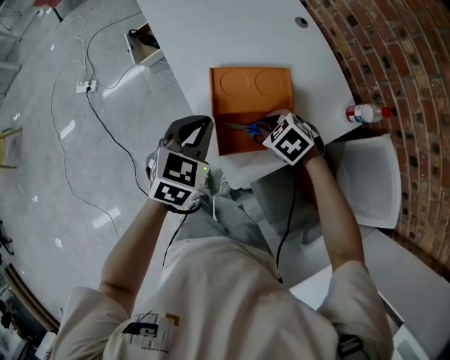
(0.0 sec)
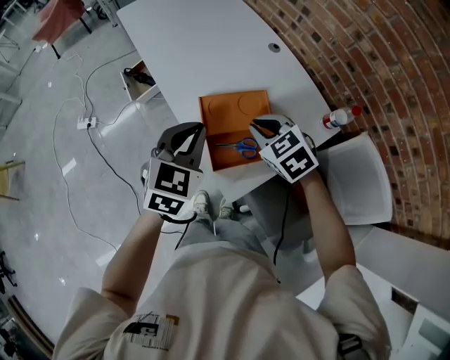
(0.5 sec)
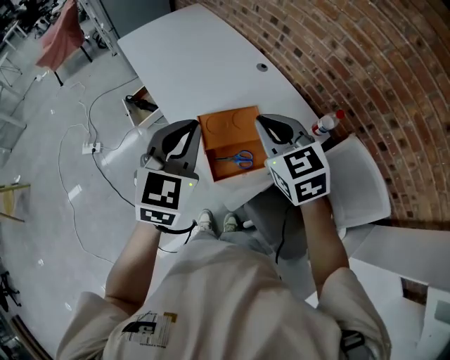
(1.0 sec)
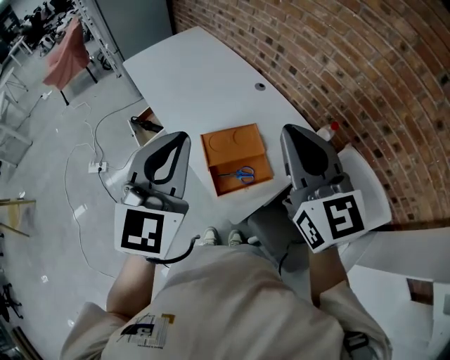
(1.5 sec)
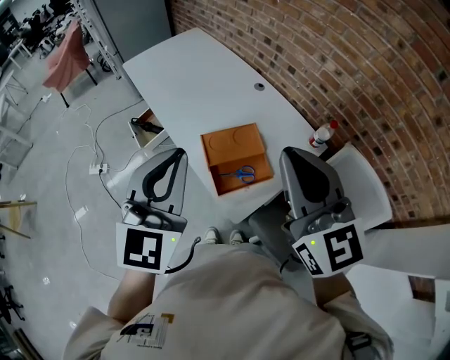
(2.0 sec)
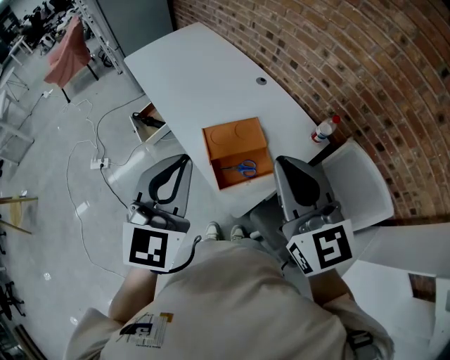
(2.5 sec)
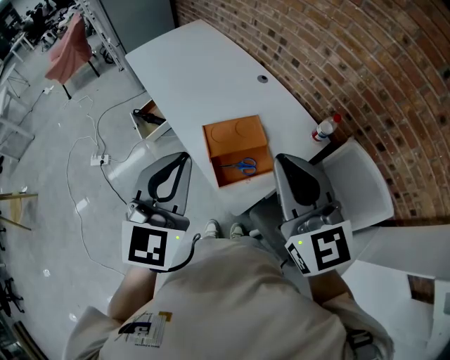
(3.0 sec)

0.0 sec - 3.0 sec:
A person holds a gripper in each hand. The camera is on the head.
0.0 sec - 1.5 sec: The two grippers go some 40 cm upward. The left gripper tips its fingers upward by roughly 30 degrees. Meanwhile the right gripper points its fingers about 70 degrees further upward.
1.5 sec - 3.0 sec: The left gripper changes place by about 5 cm. Meanwhile the right gripper heads backward, covering approximately 5 cm.

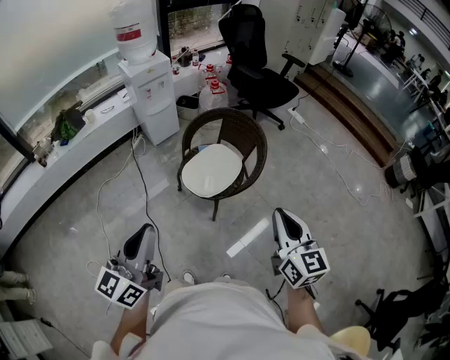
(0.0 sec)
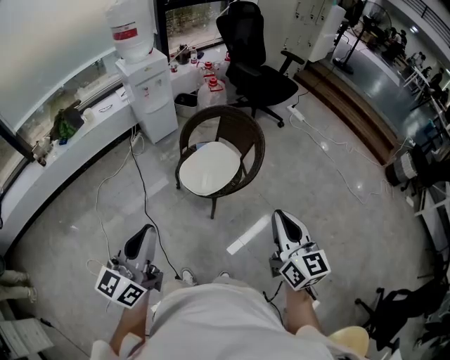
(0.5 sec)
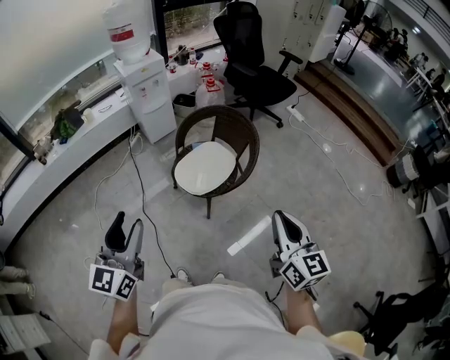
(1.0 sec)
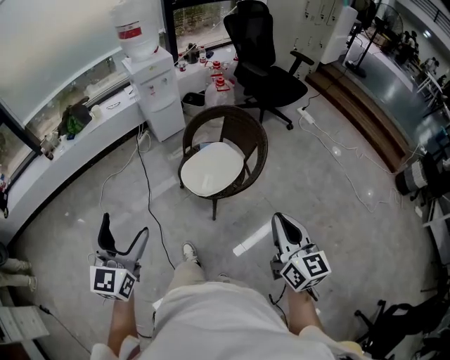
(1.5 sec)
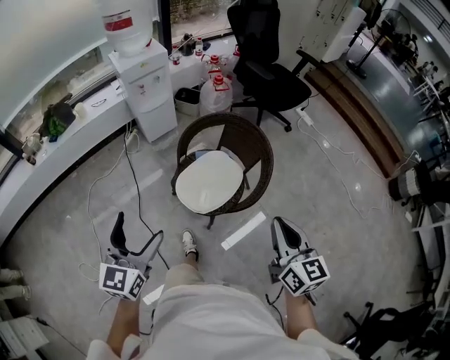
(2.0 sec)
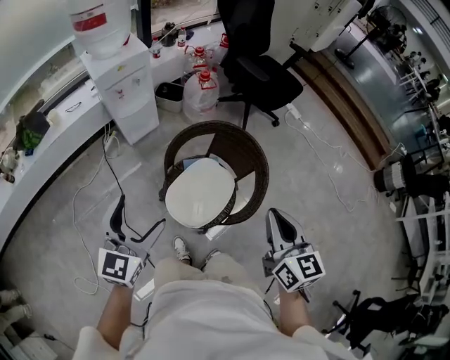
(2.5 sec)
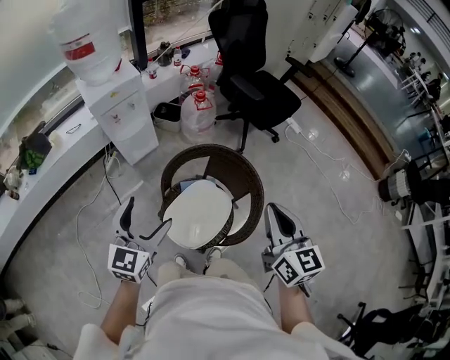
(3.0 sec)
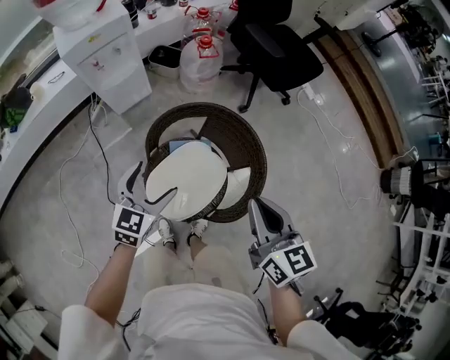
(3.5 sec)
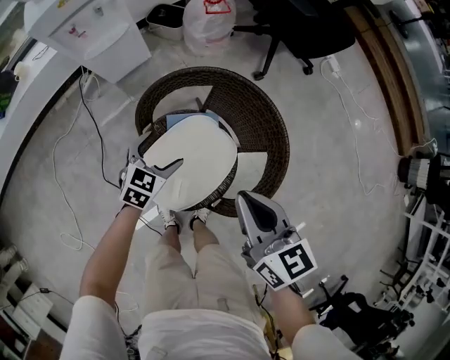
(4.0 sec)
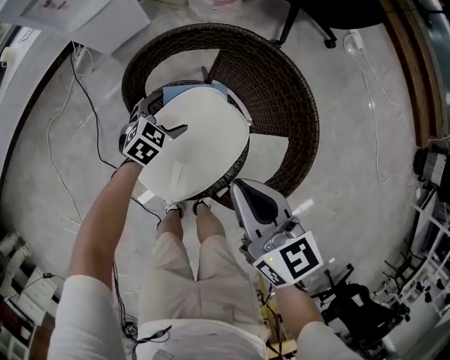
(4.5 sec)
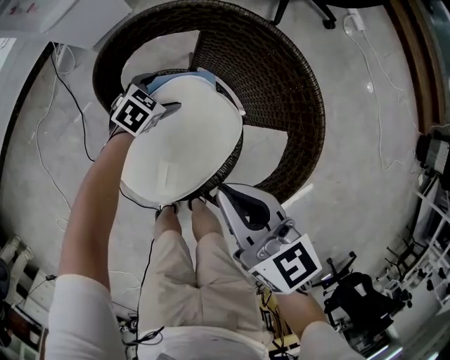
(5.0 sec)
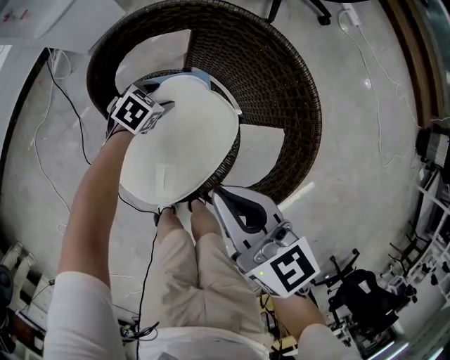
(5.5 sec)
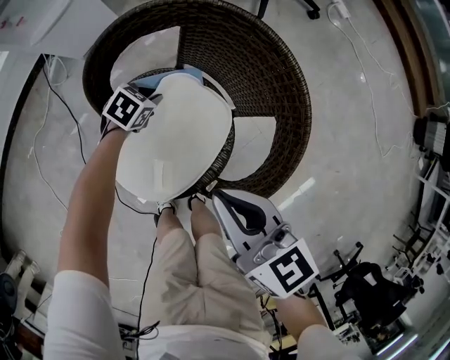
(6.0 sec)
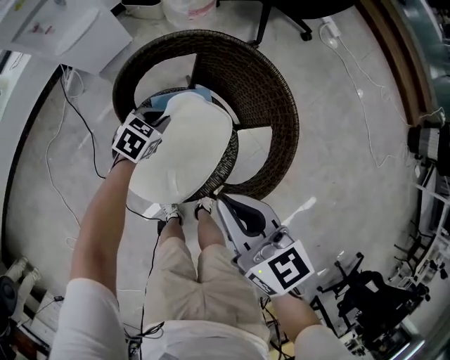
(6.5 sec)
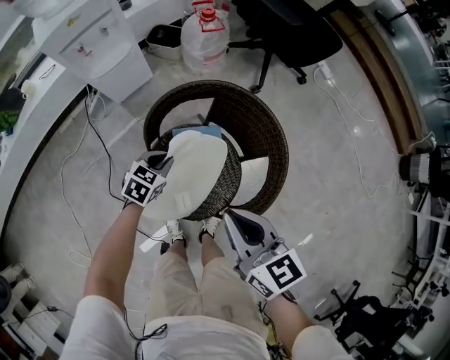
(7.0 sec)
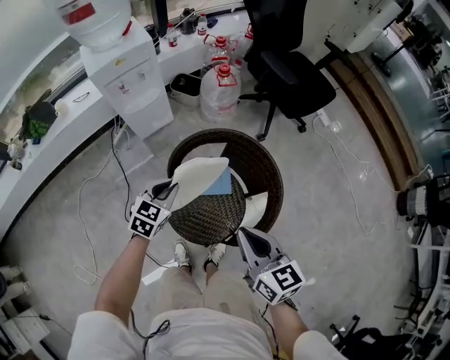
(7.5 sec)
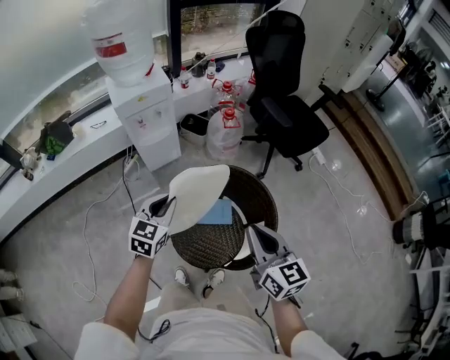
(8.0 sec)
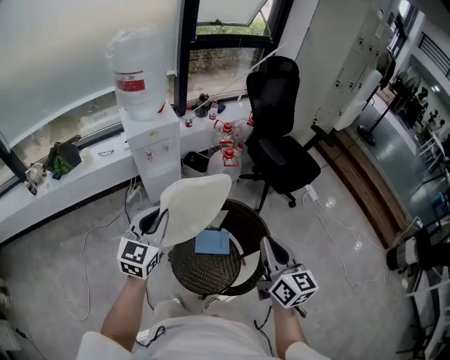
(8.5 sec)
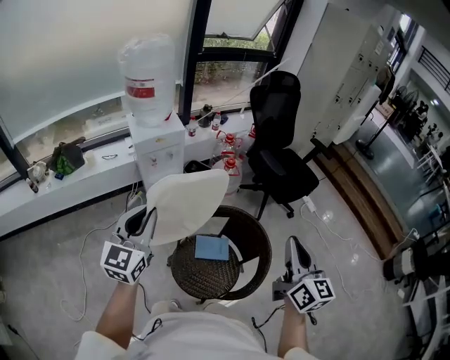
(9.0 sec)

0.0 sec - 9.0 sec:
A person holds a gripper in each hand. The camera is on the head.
0.0 sec - 2.0 sec: The left gripper travels forward and downward by some 20 cm, rotates roughly 30 degrees, and opens; the right gripper travels forward by about 15 cm.
2.0 sec - 4.5 sec: The right gripper shifts approximately 40 cm forward and downward, and rotates approximately 30 degrees, while the left gripper moves downward and forward, approximately 70 cm, and points its fingers some 40 degrees further downward.
4.5 sec - 7.0 sec: The left gripper travels upward by roughly 15 cm, and closes its fingers. The right gripper travels upward and backward by about 15 cm.
7.0 sec - 9.0 sec: The left gripper goes about 50 cm upward, and points its fingers some 50 degrees further upward. Meanwhile the right gripper shifts approximately 30 cm upward, and changes its angle by roughly 30 degrees.

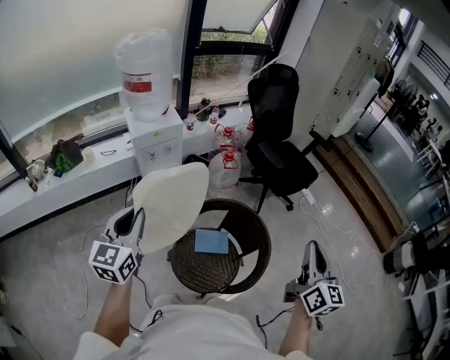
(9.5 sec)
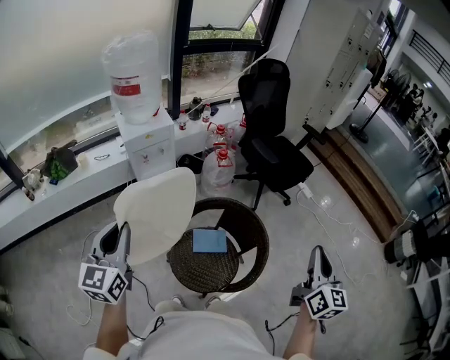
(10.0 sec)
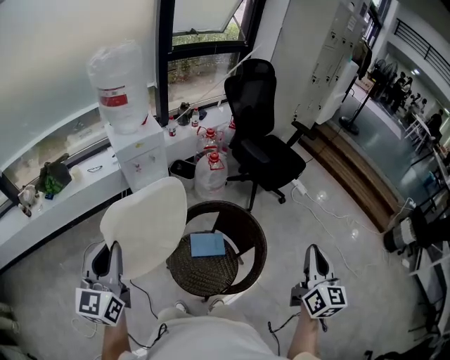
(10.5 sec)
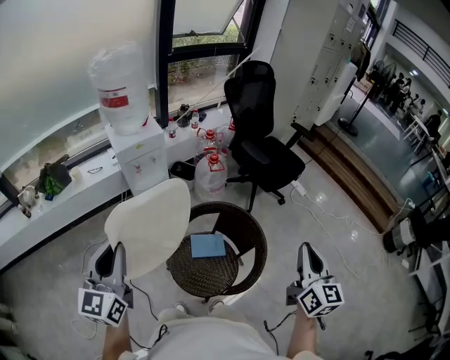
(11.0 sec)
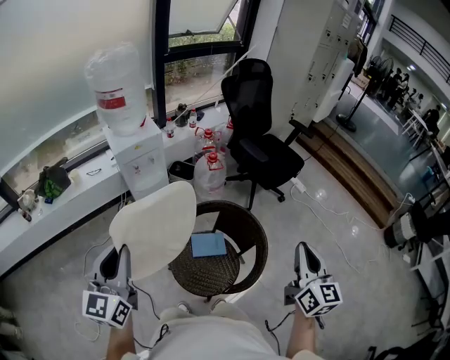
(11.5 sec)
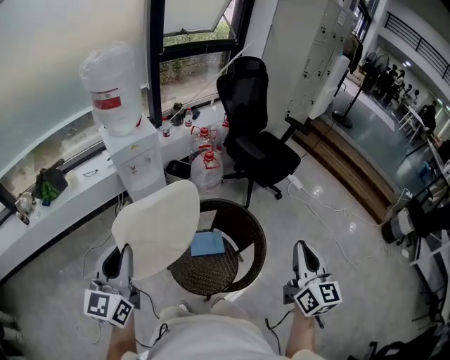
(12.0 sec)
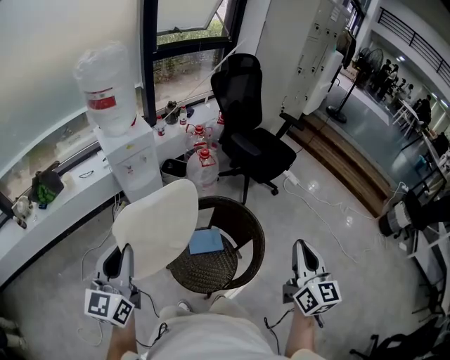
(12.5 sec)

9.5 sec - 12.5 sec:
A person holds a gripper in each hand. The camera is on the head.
9.5 sec - 11.0 sec: The left gripper heads backward, covering approximately 5 cm.
11.0 sec - 12.5 sec: The grippers move only a little.

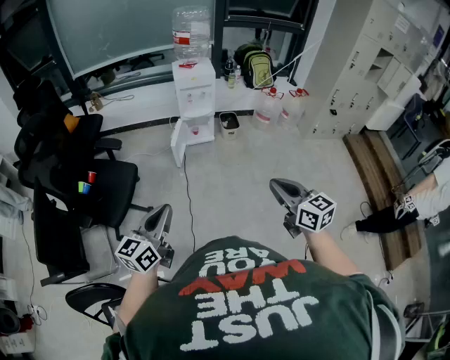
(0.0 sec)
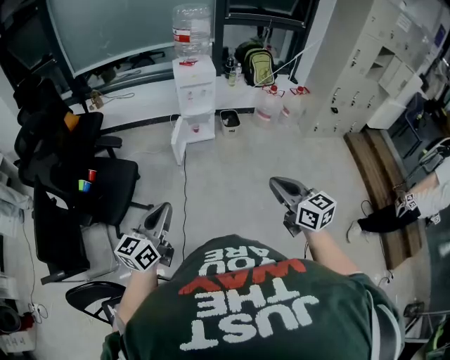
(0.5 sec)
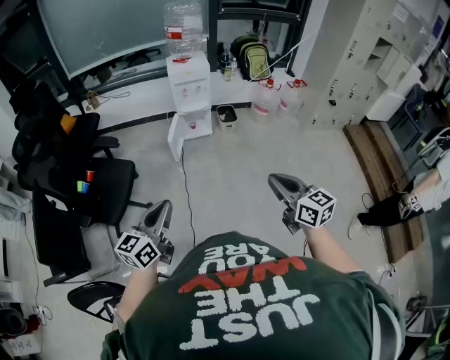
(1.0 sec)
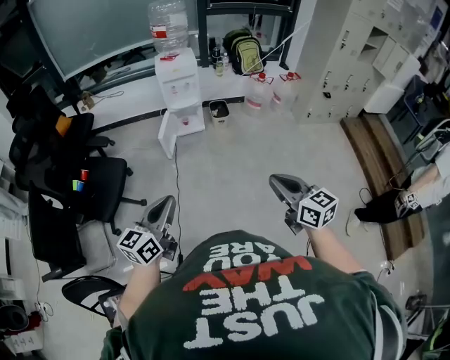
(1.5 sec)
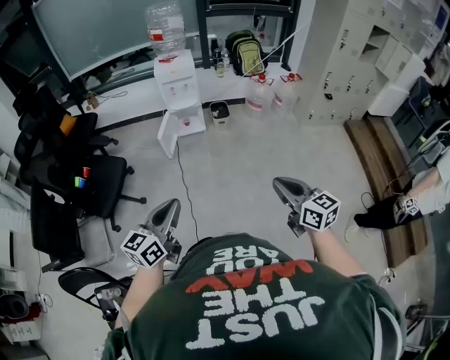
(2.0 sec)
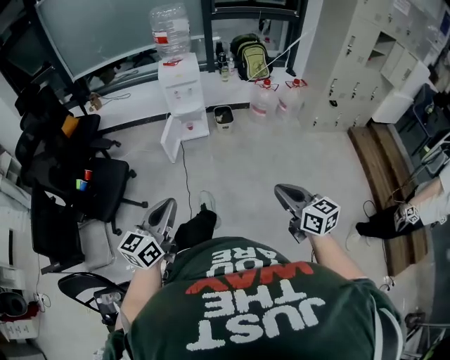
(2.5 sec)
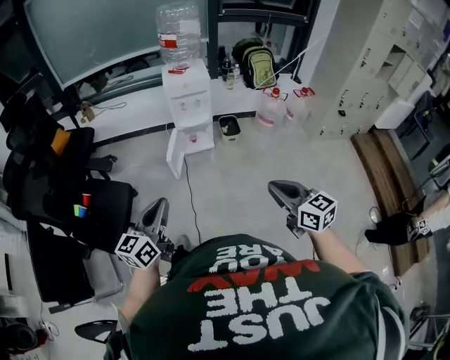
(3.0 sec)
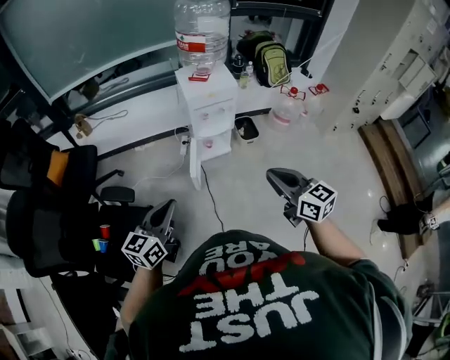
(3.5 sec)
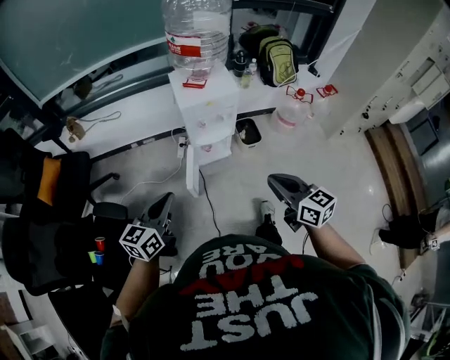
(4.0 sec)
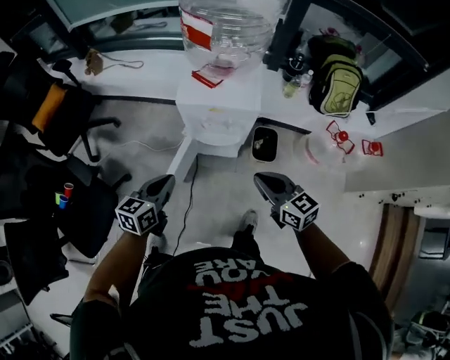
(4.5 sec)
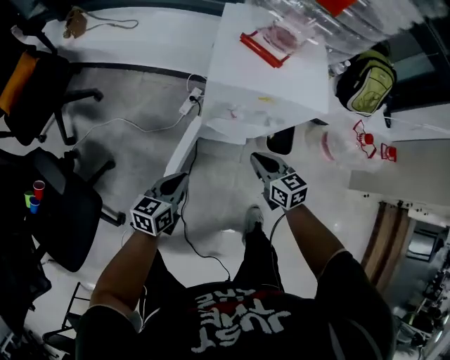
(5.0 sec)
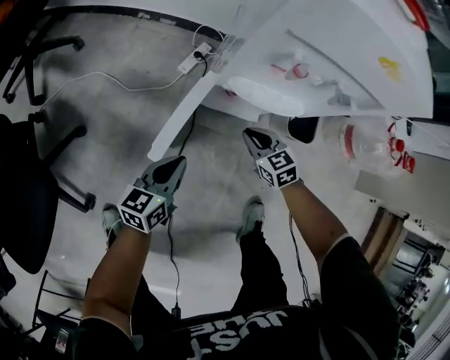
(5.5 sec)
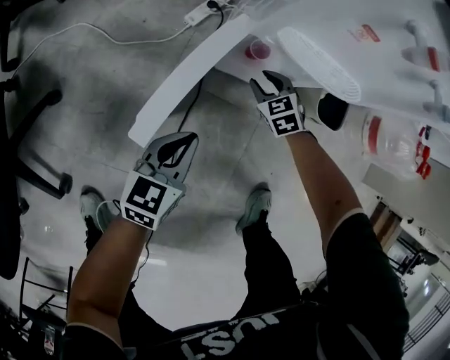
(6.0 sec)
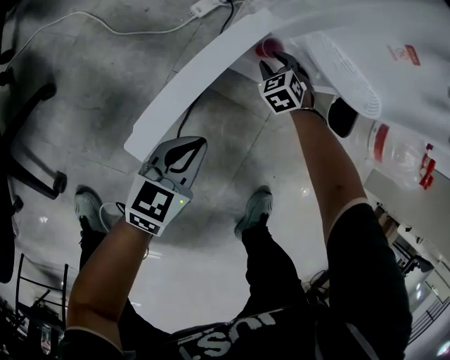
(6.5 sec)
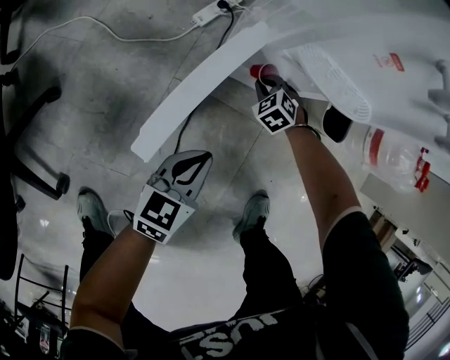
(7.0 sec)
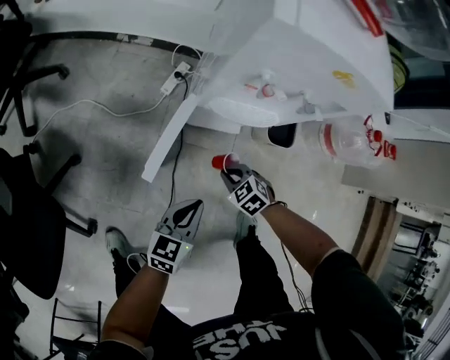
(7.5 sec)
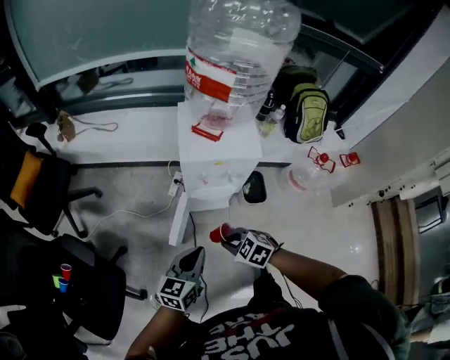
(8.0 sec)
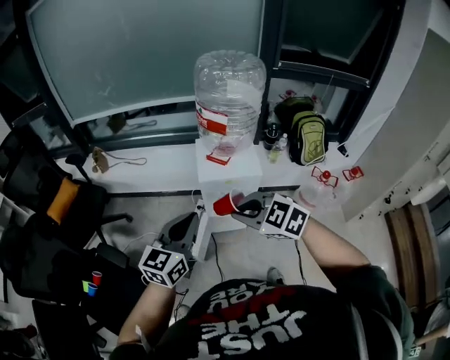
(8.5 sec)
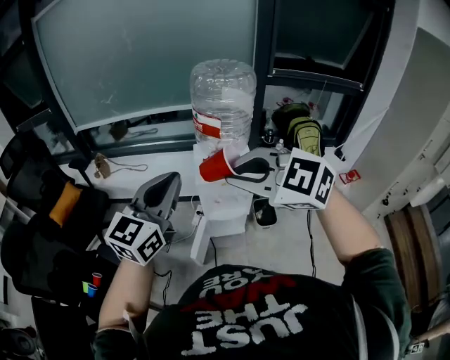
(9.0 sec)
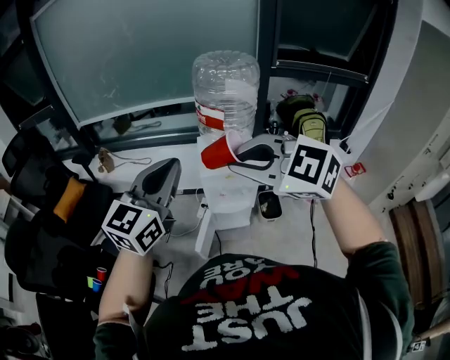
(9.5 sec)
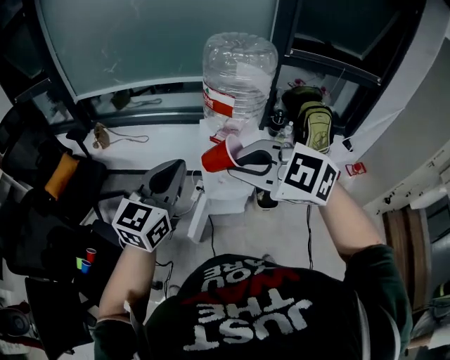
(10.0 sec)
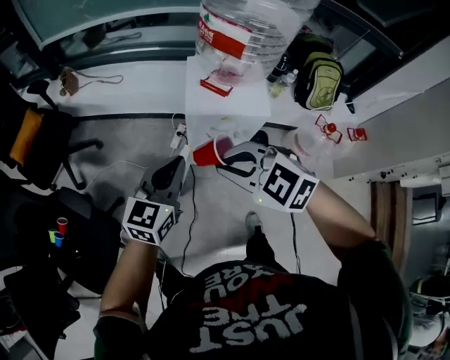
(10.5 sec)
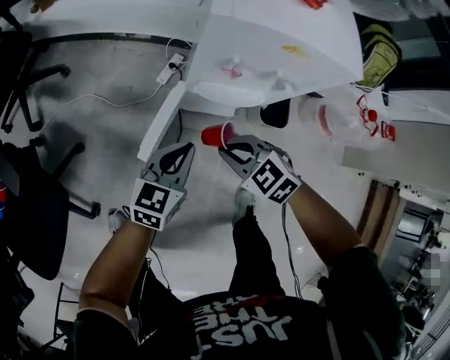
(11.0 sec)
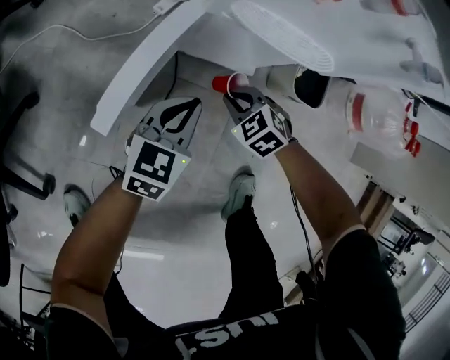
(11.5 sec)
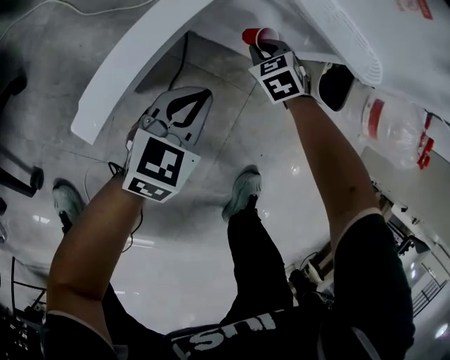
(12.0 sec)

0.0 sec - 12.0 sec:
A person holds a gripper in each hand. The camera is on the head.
0.0 sec - 2.0 sec: Both grippers move to the right, some 20 cm.
2.0 sec - 4.0 sec: The two grippers travel together, forward and to the left, approximately 70 cm.
4.0 sec - 6.0 sec: The left gripper heads downward, covering roughly 70 cm, and changes its angle by roughly 20 degrees. The right gripper heads downward and forward, covering some 90 cm, points its fingers approximately 40 degrees further downward, and opens its fingers.
6.0 sec - 8.0 sec: The left gripper travels upward by about 50 cm. The right gripper is displaced upward and backward by some 60 cm, and closes its fingers.
8.0 sec - 10.0 sec: Both grippers travel together upward, approximately 40 cm. The left gripper changes its angle by approximately 30 degrees; the right gripper turns by some 40 degrees.
10.0 sec - 12.0 sec: Both grippers move downward, roughly 1 m. The right gripper tips its fingers downward by about 30 degrees; the left gripper swivels about 30 degrees.
